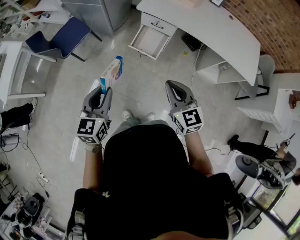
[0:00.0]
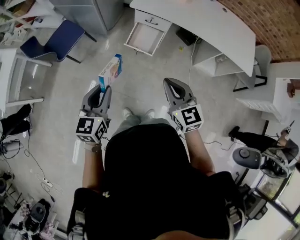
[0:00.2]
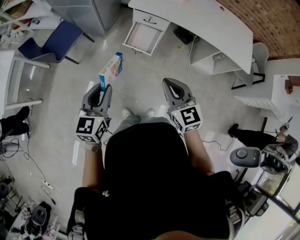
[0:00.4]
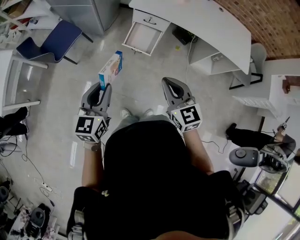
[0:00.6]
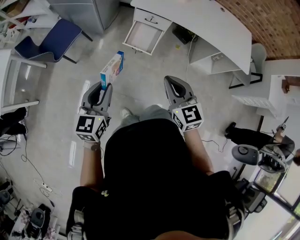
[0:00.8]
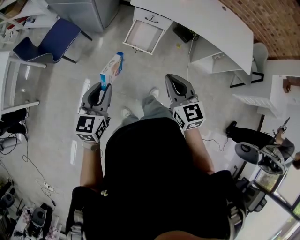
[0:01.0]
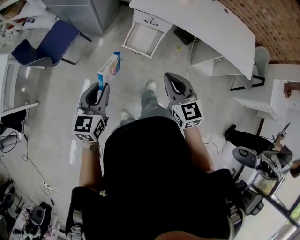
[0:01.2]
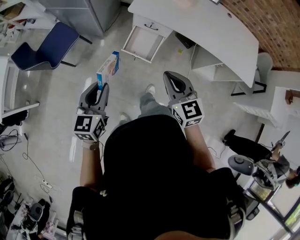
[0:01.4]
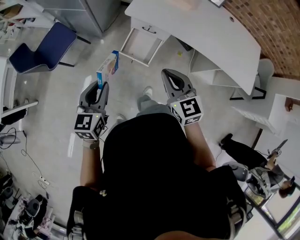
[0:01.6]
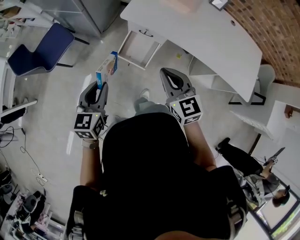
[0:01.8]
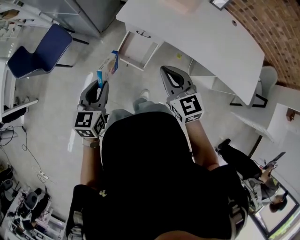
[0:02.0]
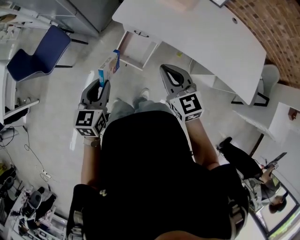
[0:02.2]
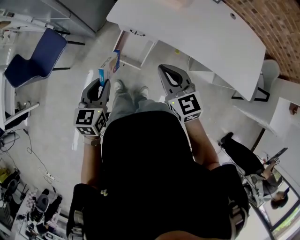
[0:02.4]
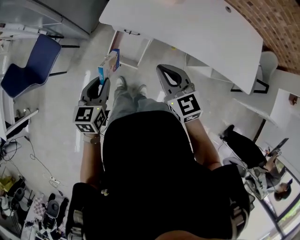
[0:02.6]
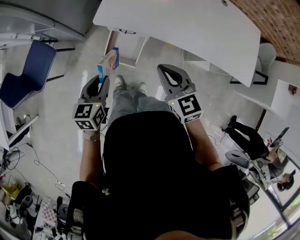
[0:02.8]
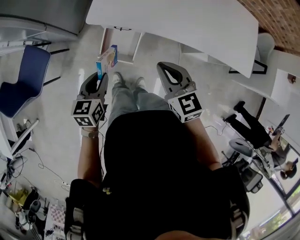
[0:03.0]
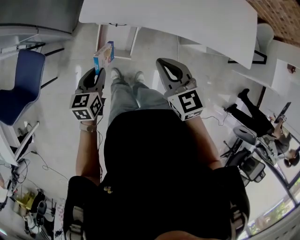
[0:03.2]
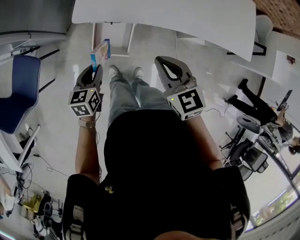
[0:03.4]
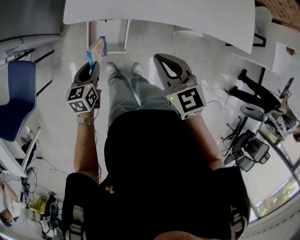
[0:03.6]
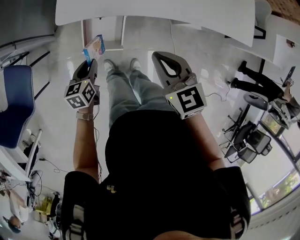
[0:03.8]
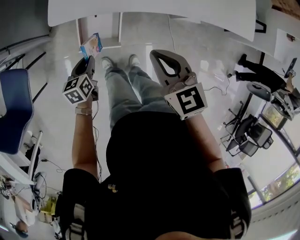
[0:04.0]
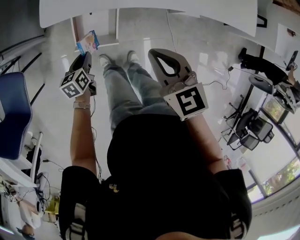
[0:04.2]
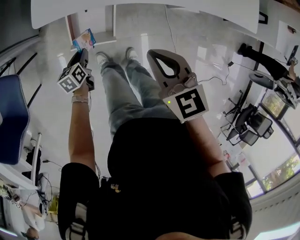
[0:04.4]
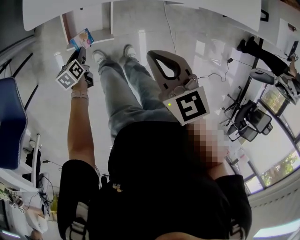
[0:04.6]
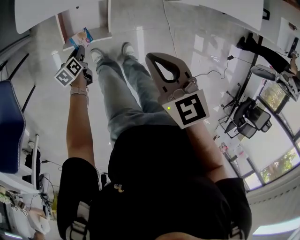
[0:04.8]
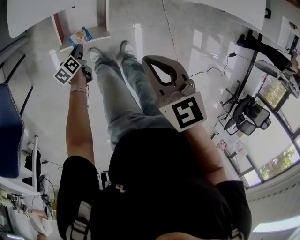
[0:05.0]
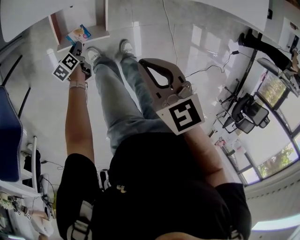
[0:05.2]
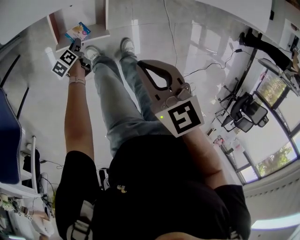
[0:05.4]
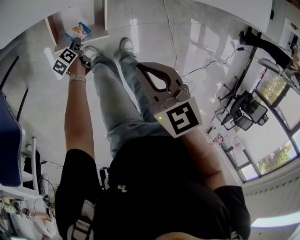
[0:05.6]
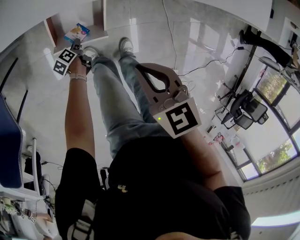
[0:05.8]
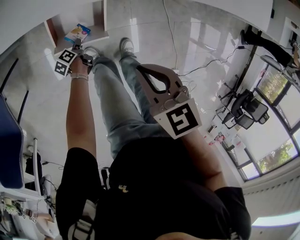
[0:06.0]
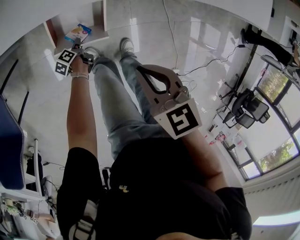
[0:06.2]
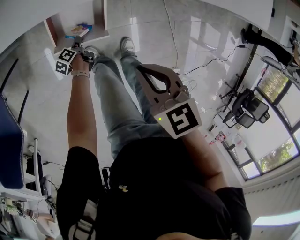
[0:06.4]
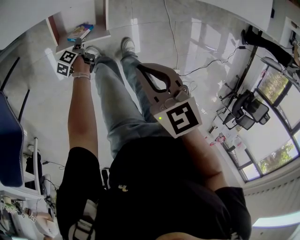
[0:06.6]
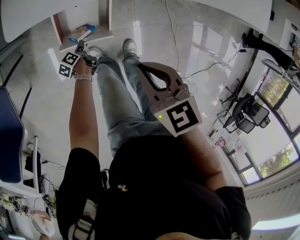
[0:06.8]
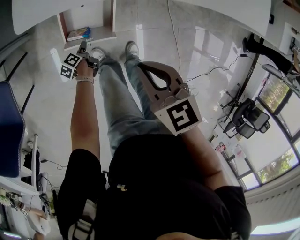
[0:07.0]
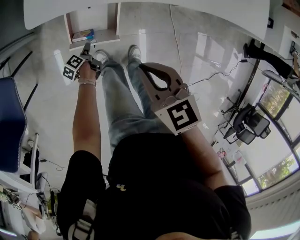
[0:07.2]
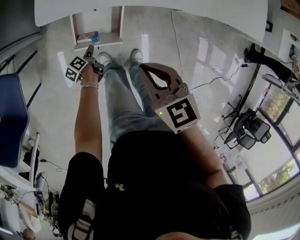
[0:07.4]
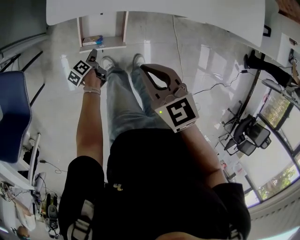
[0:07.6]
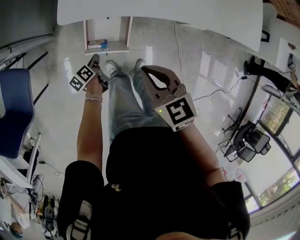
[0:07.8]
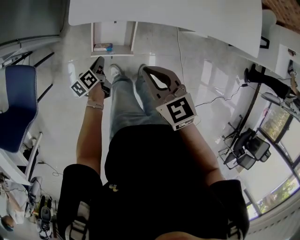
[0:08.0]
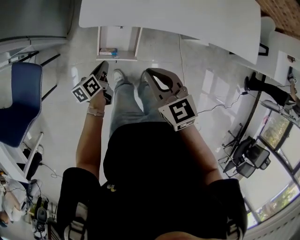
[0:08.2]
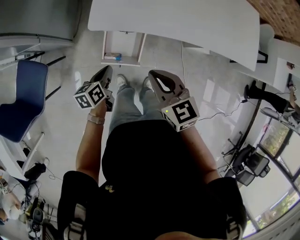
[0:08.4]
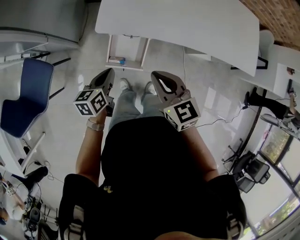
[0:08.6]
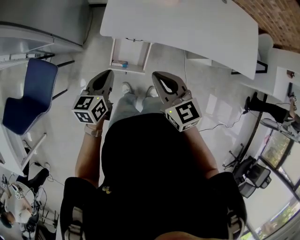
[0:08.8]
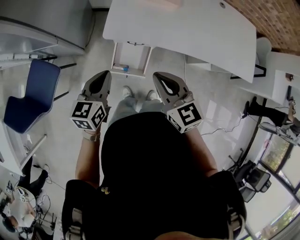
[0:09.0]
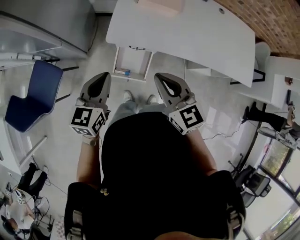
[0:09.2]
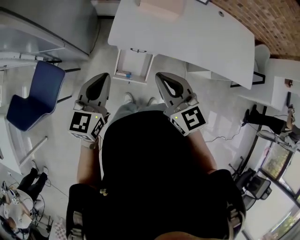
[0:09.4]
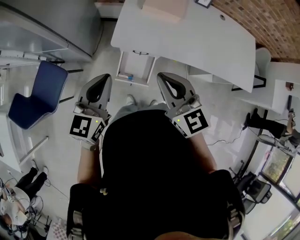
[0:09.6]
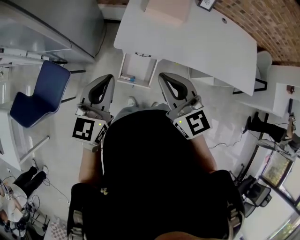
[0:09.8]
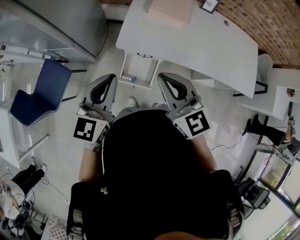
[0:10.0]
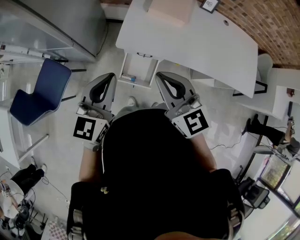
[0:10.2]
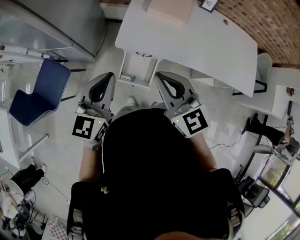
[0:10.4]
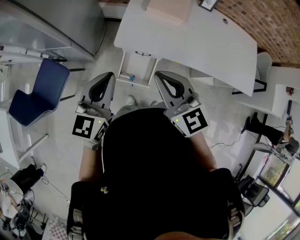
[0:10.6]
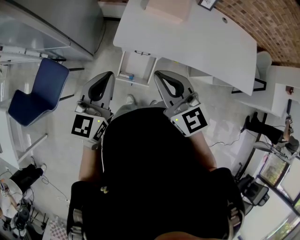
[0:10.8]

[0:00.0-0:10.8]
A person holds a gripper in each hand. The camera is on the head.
0:00.0 to 0:01.6: The grippers both shift forward by approximately 20 cm.
0:01.6 to 0:03.0: The left gripper moves forward, to the right and downward, some 25 cm; the right gripper moves forward and to the right, approximately 15 cm.
0:03.0 to 0:04.6: The left gripper goes some 35 cm downward, and swivels roughly 30 degrees. Meanwhile the right gripper travels downward by approximately 15 cm.
0:04.6 to 0:06.2: The left gripper goes about 20 cm downward, and rotates approximately 40 degrees. The right gripper is displaced downward by approximately 10 cm.
0:06.2 to 0:07.8: The right gripper heads upward, covering some 10 cm. Meanwhile the left gripper goes roughly 20 cm upward, and closes its fingers.
0:07.8 to 0:09.2: The left gripper travels upward by approximately 40 cm, and rotates around the line of its fingers by approximately 50 degrees, clockwise from behind. The right gripper travels upward by some 15 cm, and swivels about 20 degrees.
0:09.2 to 0:10.8: Both grippers travel together upward, approximately 10 cm.

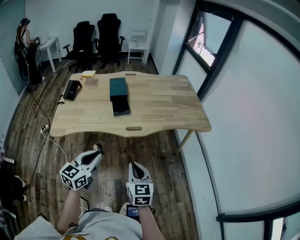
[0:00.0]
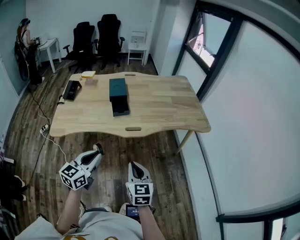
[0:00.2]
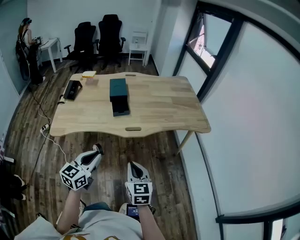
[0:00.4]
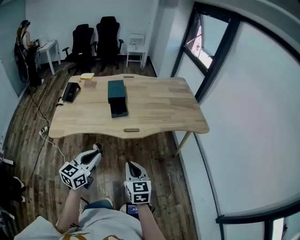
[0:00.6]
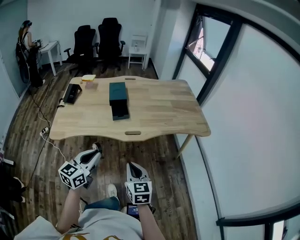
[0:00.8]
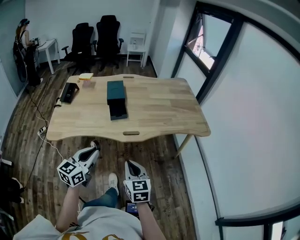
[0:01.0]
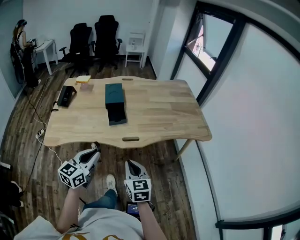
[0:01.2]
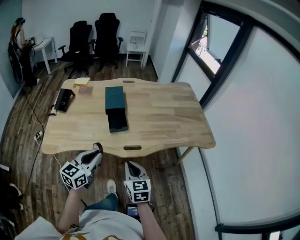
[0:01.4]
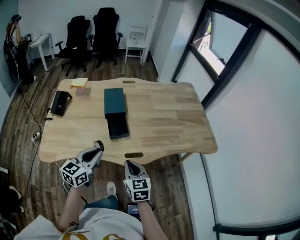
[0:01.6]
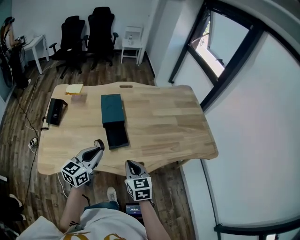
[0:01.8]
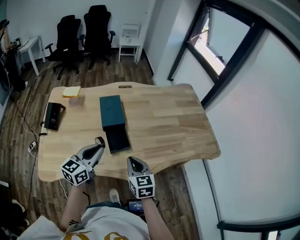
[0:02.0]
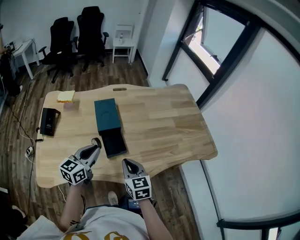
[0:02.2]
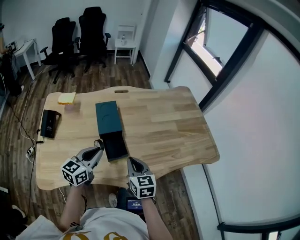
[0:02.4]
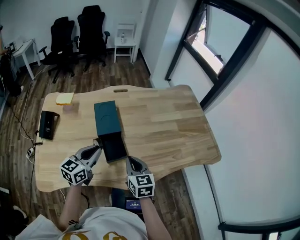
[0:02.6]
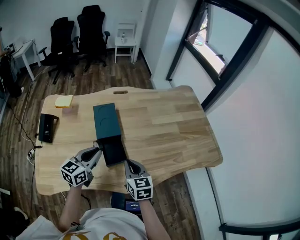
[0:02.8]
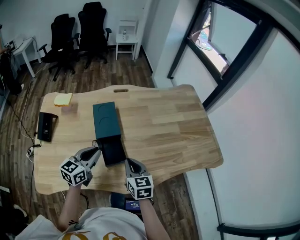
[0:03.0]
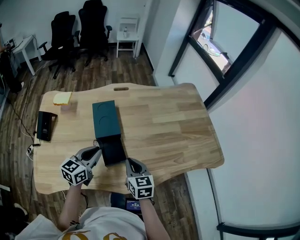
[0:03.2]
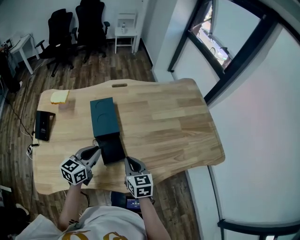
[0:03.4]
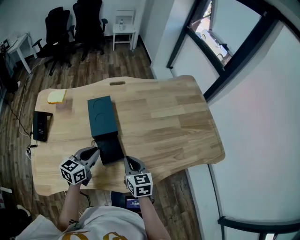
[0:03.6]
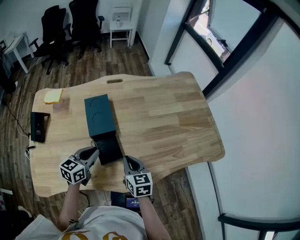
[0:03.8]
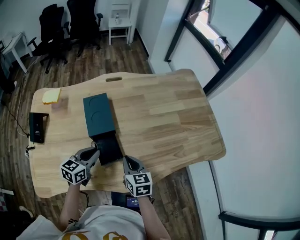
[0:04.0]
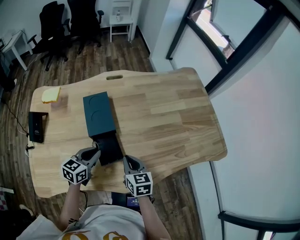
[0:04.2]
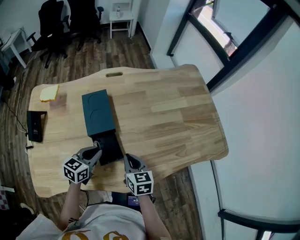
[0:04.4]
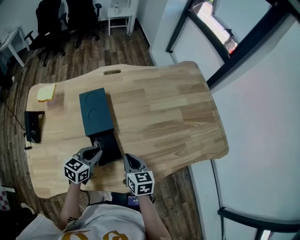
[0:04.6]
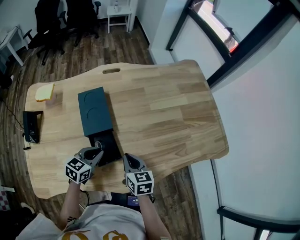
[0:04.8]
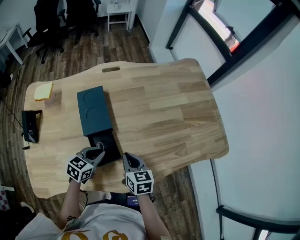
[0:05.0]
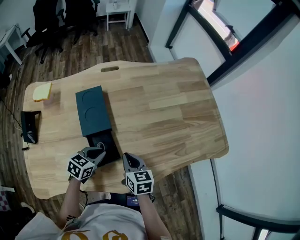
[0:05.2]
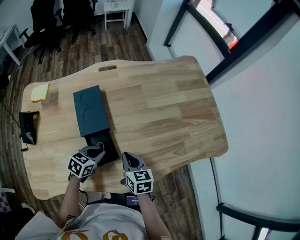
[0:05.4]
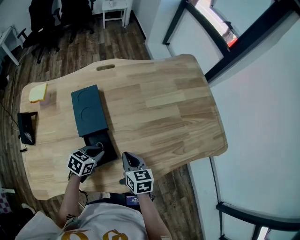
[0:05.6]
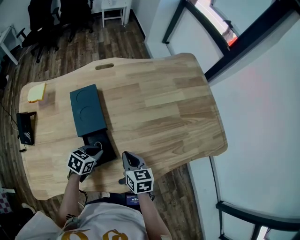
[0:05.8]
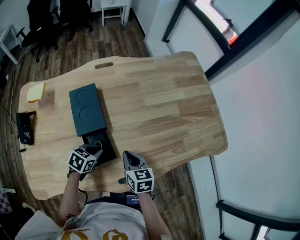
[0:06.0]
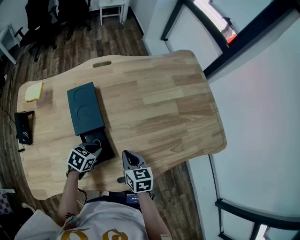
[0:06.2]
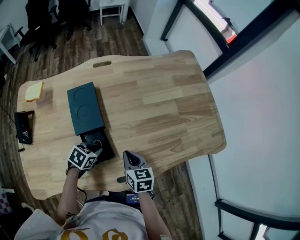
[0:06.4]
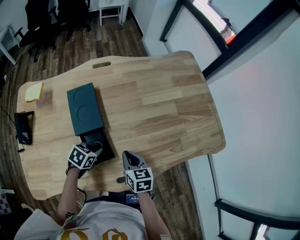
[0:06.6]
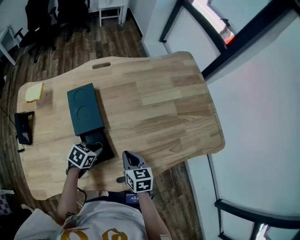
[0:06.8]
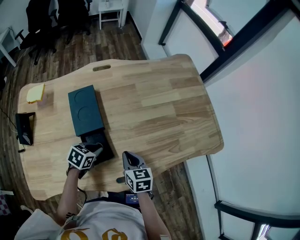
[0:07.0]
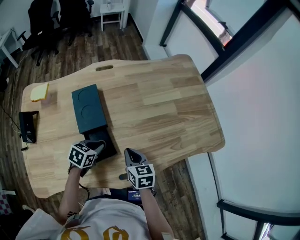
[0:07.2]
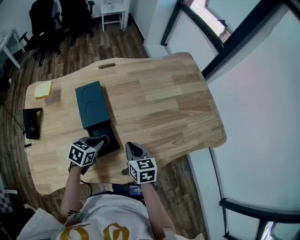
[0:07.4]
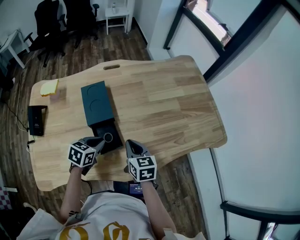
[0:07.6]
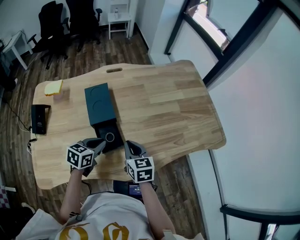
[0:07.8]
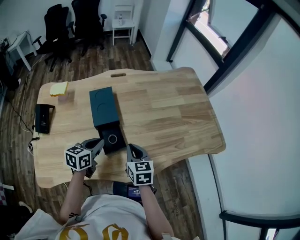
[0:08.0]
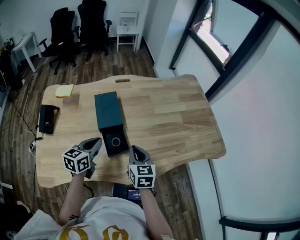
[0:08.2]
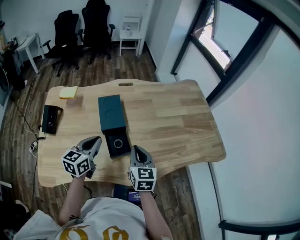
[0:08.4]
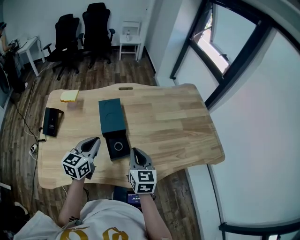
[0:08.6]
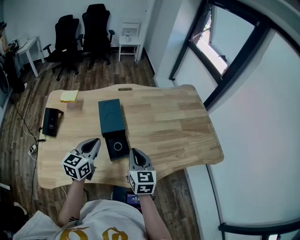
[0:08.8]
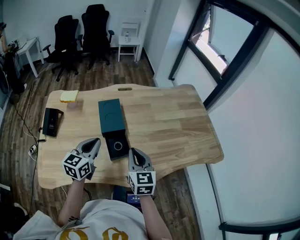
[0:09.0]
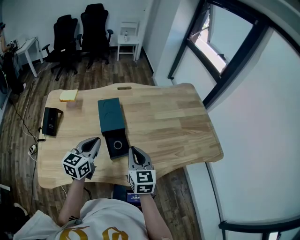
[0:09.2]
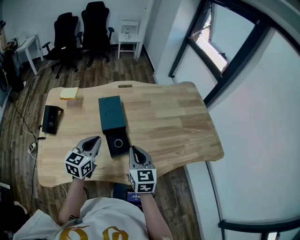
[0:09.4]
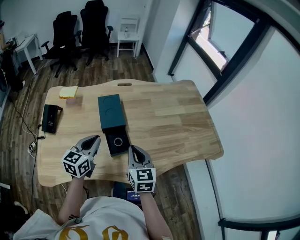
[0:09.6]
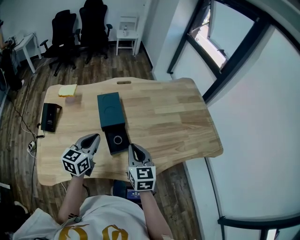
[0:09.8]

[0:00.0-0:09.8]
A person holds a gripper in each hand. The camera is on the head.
0:00.0 to 0:01.4: The two grippers go approximately 15 cm forward.
0:01.4 to 0:02.8: Both grippers move forward, some 25 cm.
0:02.8 to 0:04.2: The right gripper goes approximately 5 cm downward. Meanwhile the left gripper is displaced downward by roughly 10 cm.
0:04.2 to 0:05.6: The left gripper travels downward by approximately 10 cm, and rotates approximately 30 degrees. The right gripper changes place by about 5 cm.
0:05.6 to 0:07.0: The grippers make only small movements.
0:07.0 to 0:08.4: The right gripper heads upward, covering roughly 15 cm, and swivels roughly 20 degrees. The left gripper goes some 20 cm upward and to the left, and tips its fingers upward by approximately 40 degrees.
0:08.4 to 0:09.8: There are only small adjustments of the grippers.

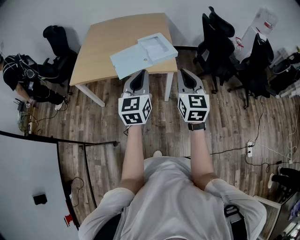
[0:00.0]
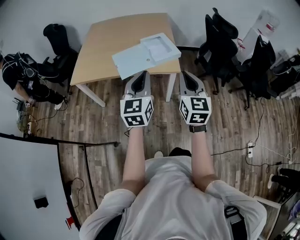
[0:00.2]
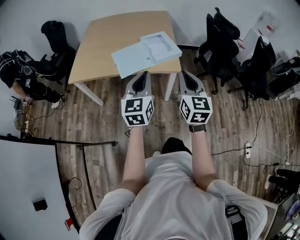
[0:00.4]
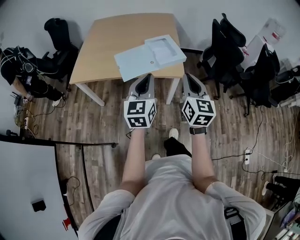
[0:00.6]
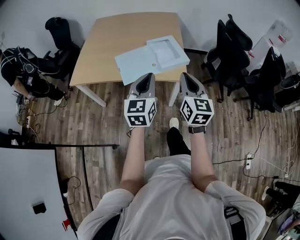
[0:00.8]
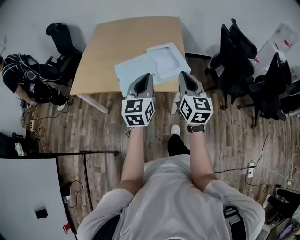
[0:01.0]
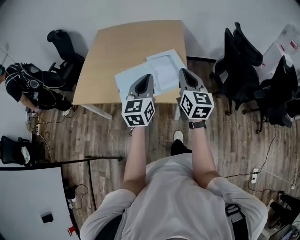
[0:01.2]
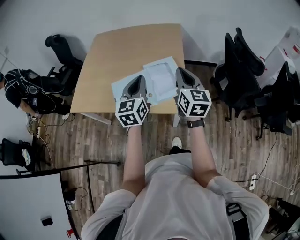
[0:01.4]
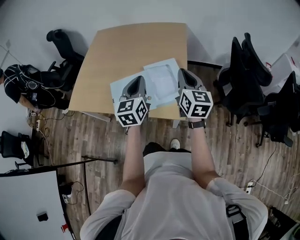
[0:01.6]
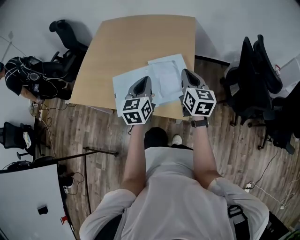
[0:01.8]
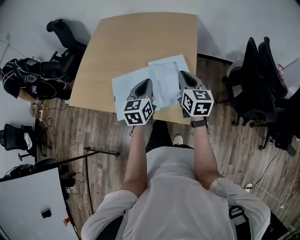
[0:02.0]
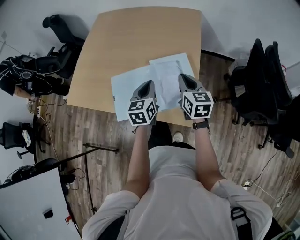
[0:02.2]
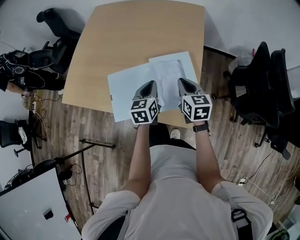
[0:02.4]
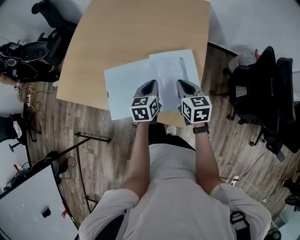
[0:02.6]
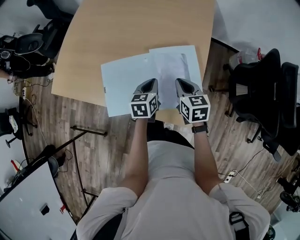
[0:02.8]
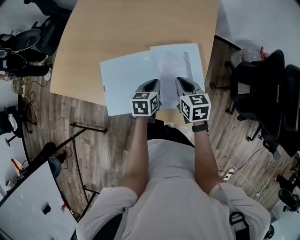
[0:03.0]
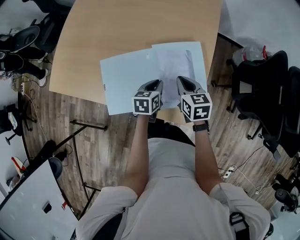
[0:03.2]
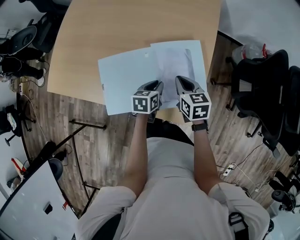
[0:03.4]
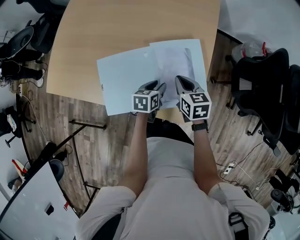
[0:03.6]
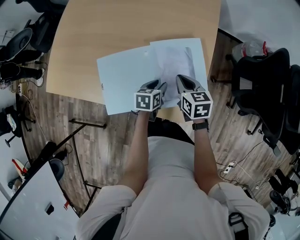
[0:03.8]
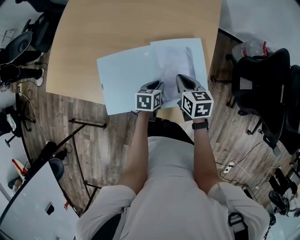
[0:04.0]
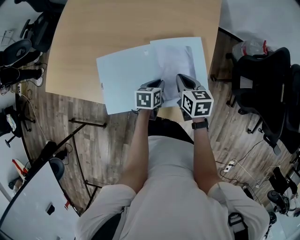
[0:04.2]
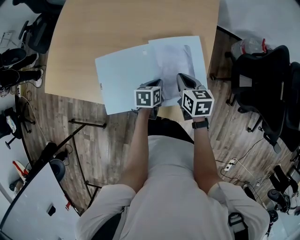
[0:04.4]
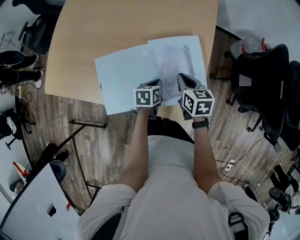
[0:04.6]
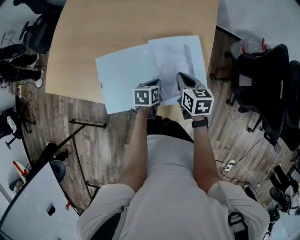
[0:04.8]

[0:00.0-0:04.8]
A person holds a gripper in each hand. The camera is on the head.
0:00.0 to 0:01.6: Both grippers travel together forward, some 40 cm.
0:01.6 to 0:03.2: The left gripper heads downward, covering some 30 cm, and angles its fingers downward, by approximately 30 degrees, while the right gripper goes some 30 cm downward and forward, and tilts its fingers about 30 degrees downward.
0:03.2 to 0:04.8: The left gripper ends up approximately 5 cm from where it was, and opens, then closes again.
